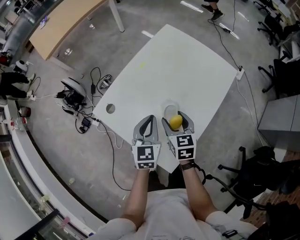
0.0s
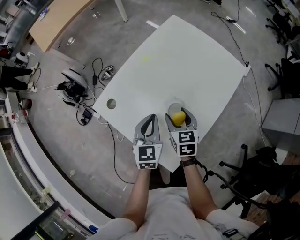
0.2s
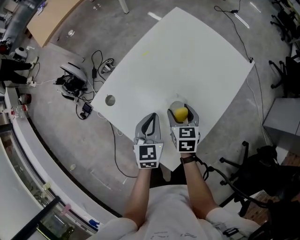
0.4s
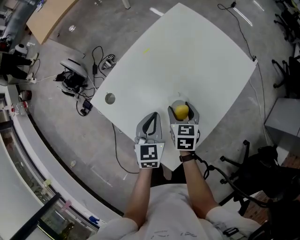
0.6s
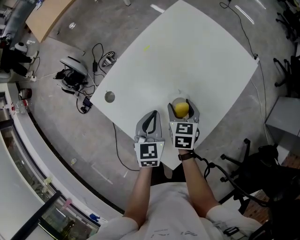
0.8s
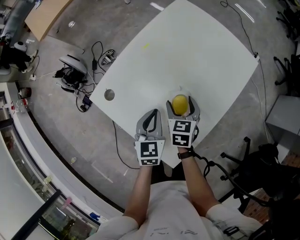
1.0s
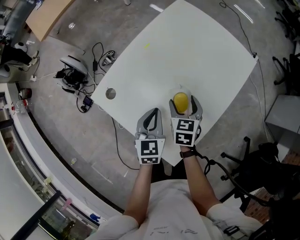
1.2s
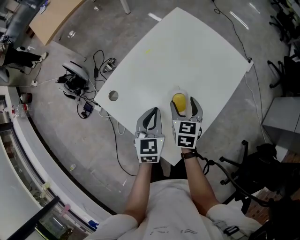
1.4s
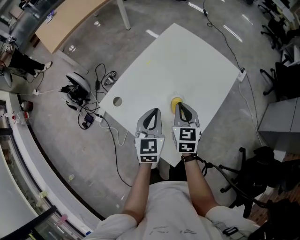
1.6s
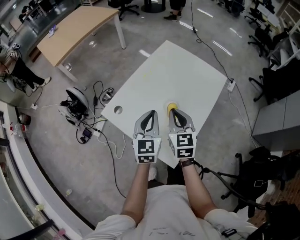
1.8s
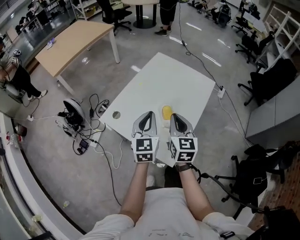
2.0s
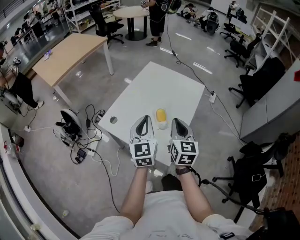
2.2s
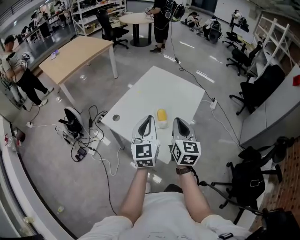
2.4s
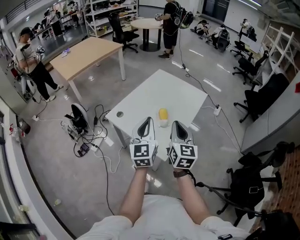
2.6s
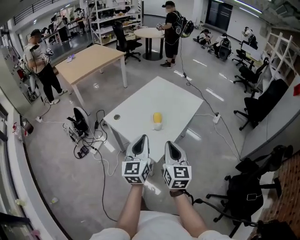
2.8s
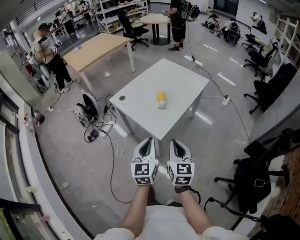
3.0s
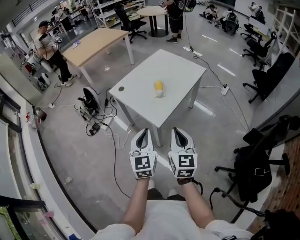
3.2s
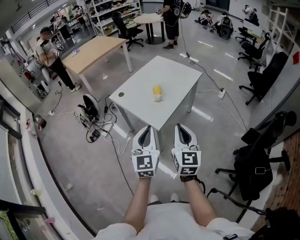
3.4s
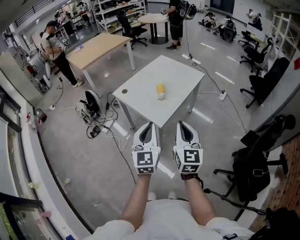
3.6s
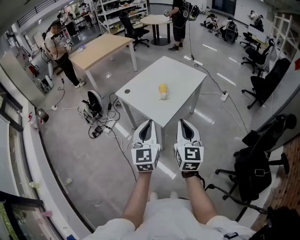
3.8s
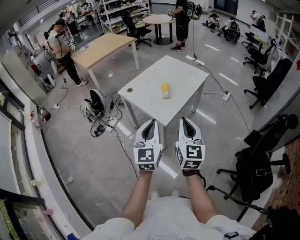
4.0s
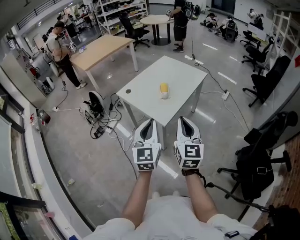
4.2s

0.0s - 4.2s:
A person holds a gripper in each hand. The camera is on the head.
0.0s - 1.4s: The right gripper travels downward and back again, approximately 10 cm each way.
1.4s - 2.8s: Both grippers move backward and upward, about 35 cm. The left gripper angles its fingers upward, by approximately 30 degrees. The right gripper points its fingers roughly 30 degrees further upward, and closes its fingers.
2.8s - 4.2s: The right gripper heads backward and upward, covering some 15 cm. The left gripper is displaced backward by approximately 15 cm.

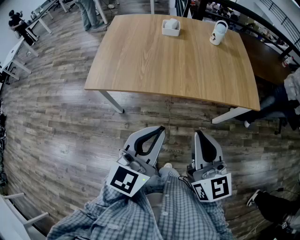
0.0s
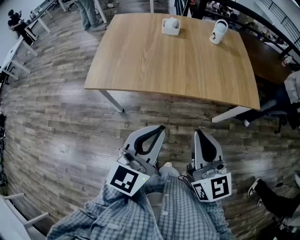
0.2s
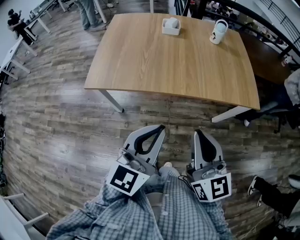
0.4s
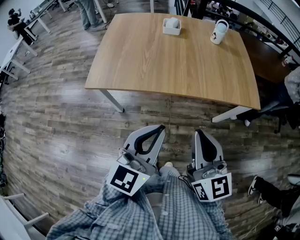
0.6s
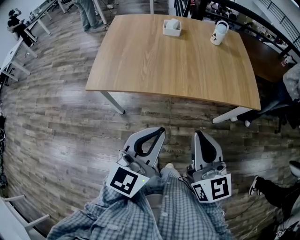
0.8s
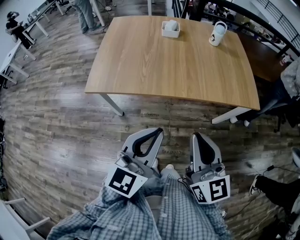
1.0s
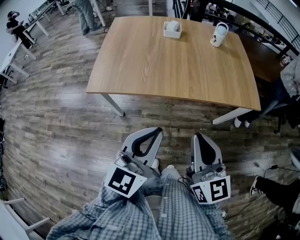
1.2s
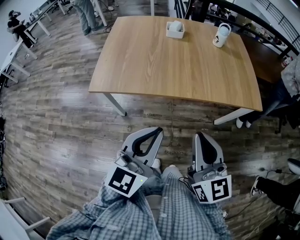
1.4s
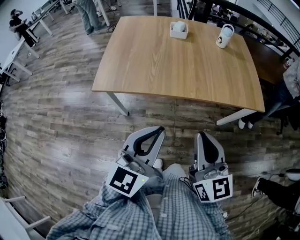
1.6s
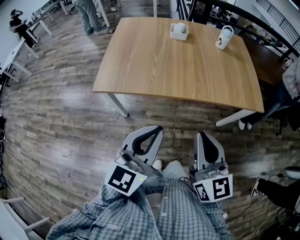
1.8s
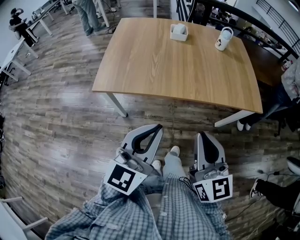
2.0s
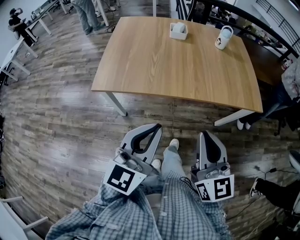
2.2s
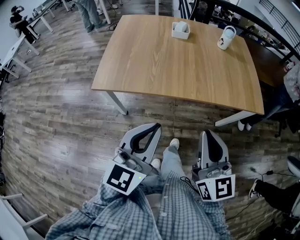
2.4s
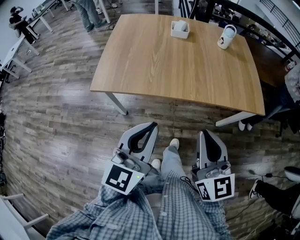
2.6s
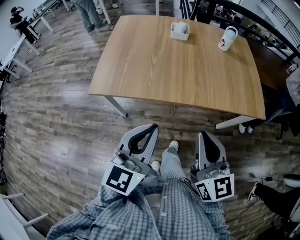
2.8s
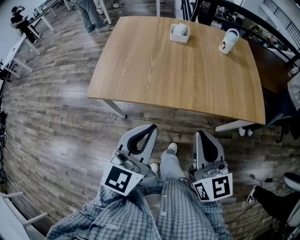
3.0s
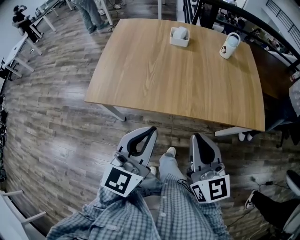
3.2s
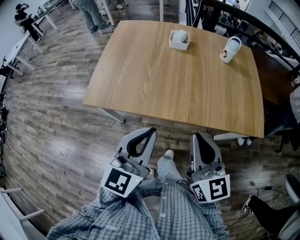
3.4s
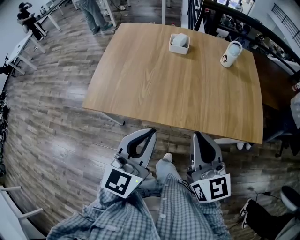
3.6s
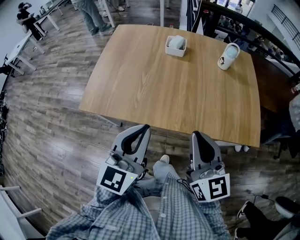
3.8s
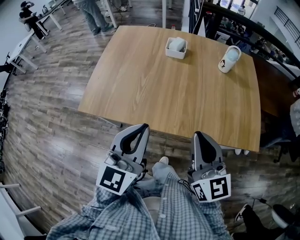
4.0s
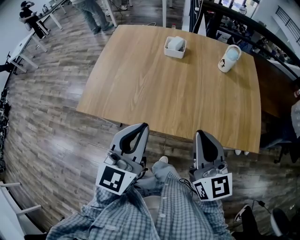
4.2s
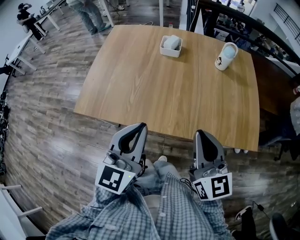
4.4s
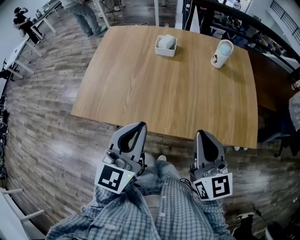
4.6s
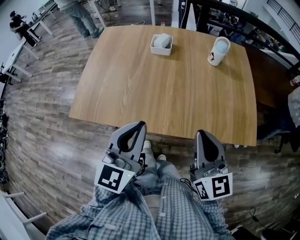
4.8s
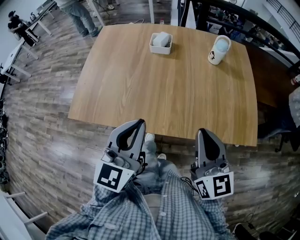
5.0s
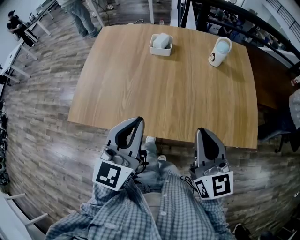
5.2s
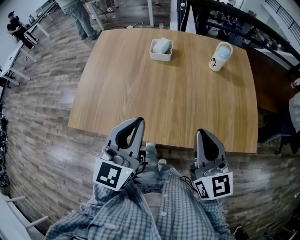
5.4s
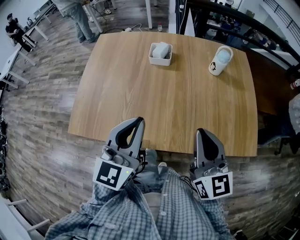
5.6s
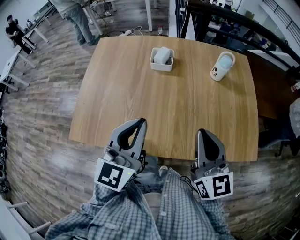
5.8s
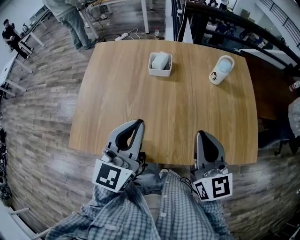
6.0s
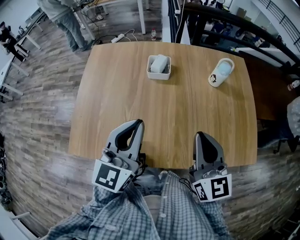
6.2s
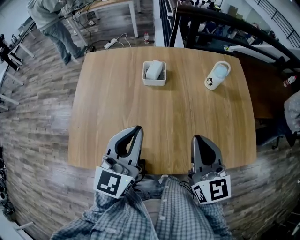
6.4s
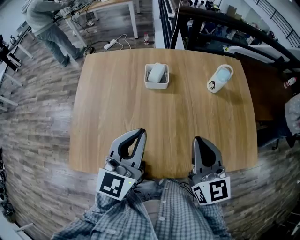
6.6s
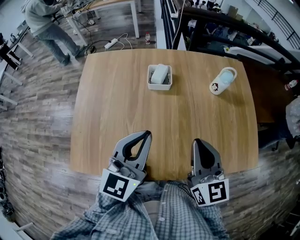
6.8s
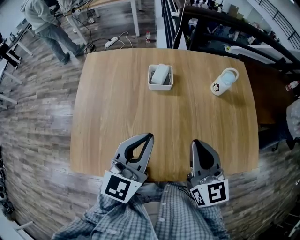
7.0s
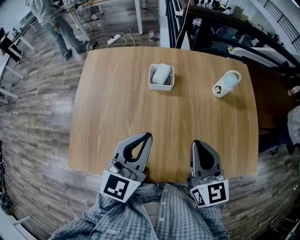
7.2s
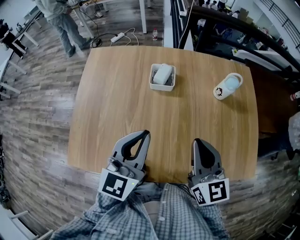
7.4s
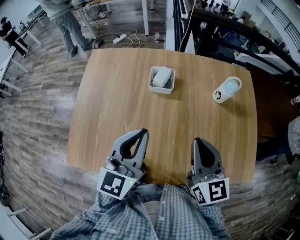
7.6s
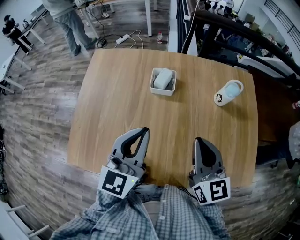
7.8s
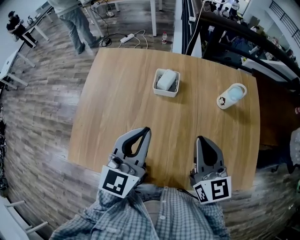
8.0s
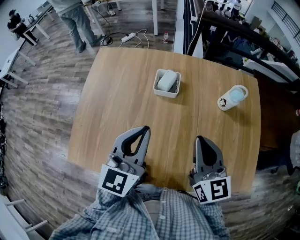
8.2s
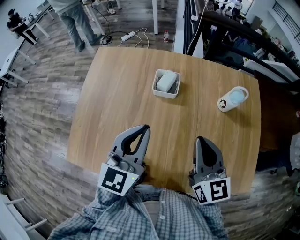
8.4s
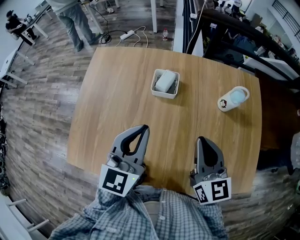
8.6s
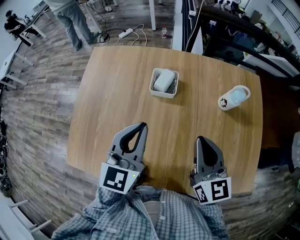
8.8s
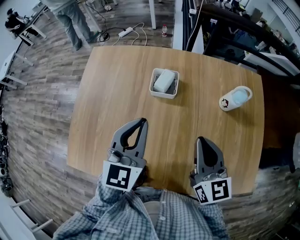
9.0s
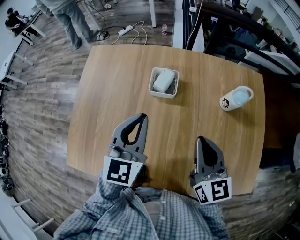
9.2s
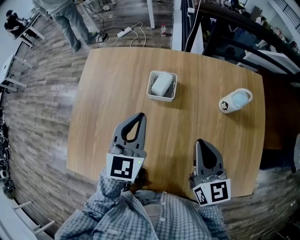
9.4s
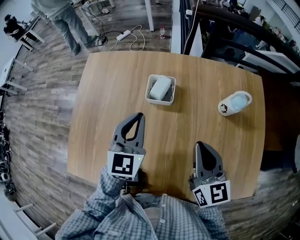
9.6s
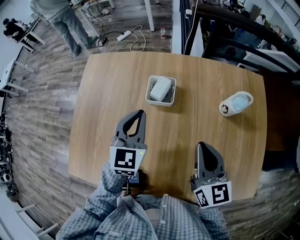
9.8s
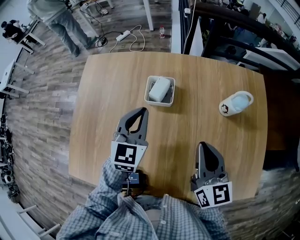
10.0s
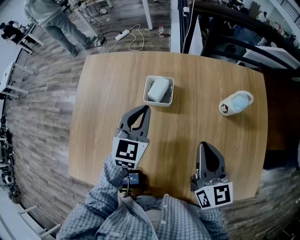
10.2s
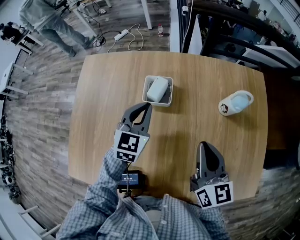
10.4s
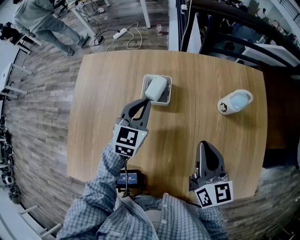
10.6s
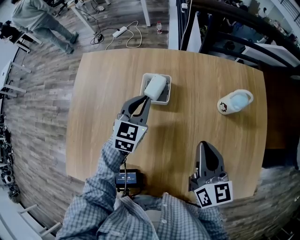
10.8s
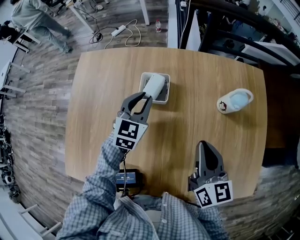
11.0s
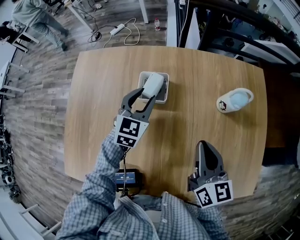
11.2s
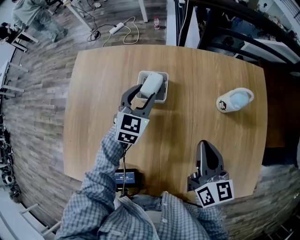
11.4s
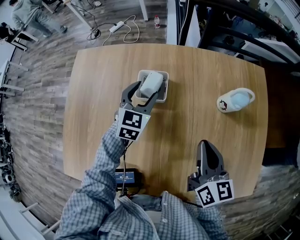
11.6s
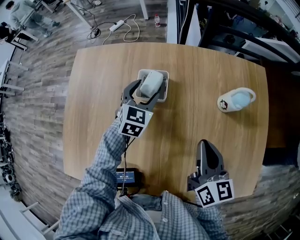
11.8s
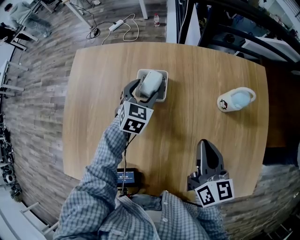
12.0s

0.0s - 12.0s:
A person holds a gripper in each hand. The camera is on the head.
0.0s - 1.6s: The grippers both shift to the left by approximately 5 cm.
1.6s - 3.0s: Both grippers move forward, some 5 cm.
3.0s - 4.4s: Both grippers move forward and to the right, approximately 15 cm.
4.4s - 6.0s: Both grippers travel together forward, about 15 cm.
6.0s - 7.6s: The grippers both shift forward by some 10 cm.
7.6s - 9.0s: Both grippers move forward, approximately 5 cm.
9.0s - 10.4s: The right gripper moves about 5 cm. Meanwhile the left gripper travels forward and downward by roughly 15 cm.
10.4s - 12.0s: The left gripper moves downward and forward, about 10 cm, and opens its fingers.

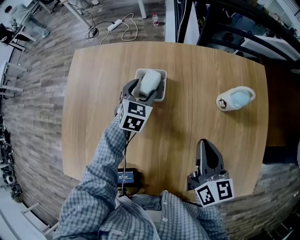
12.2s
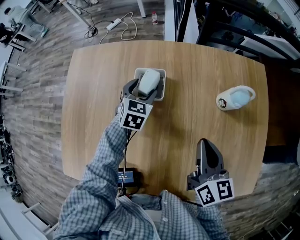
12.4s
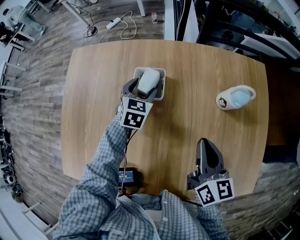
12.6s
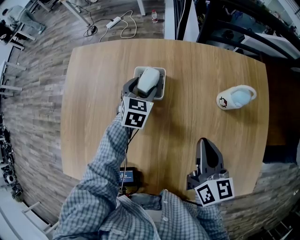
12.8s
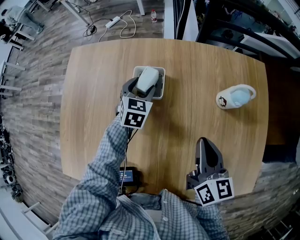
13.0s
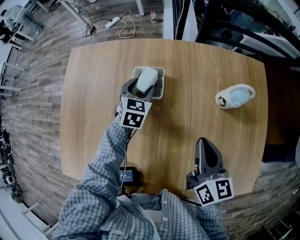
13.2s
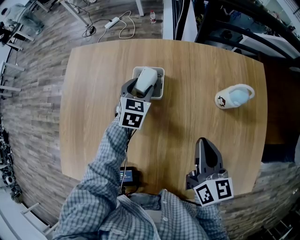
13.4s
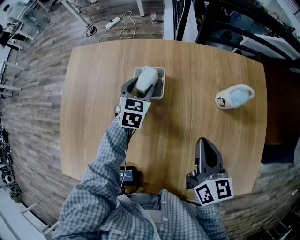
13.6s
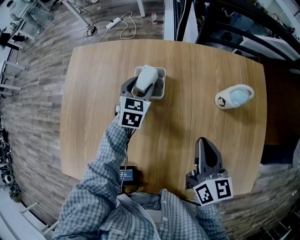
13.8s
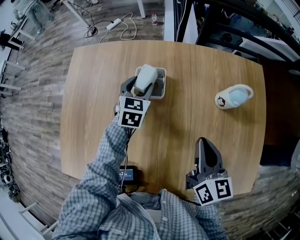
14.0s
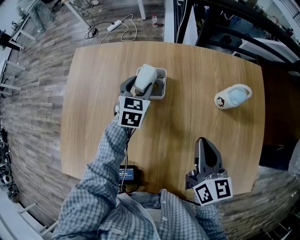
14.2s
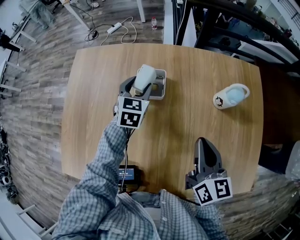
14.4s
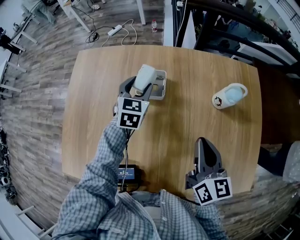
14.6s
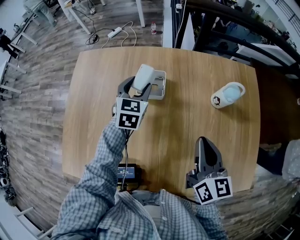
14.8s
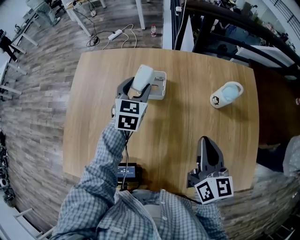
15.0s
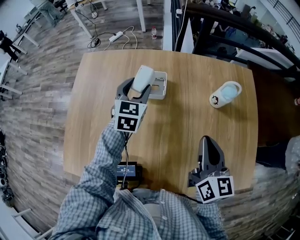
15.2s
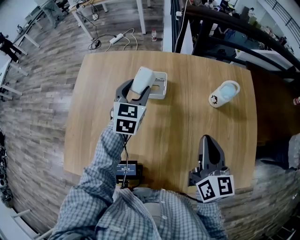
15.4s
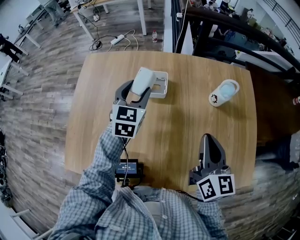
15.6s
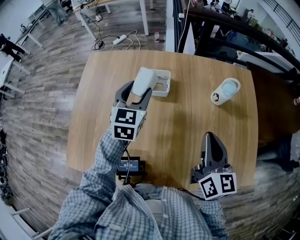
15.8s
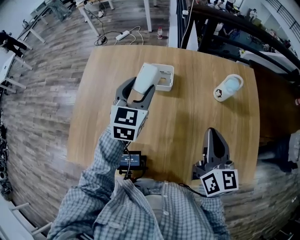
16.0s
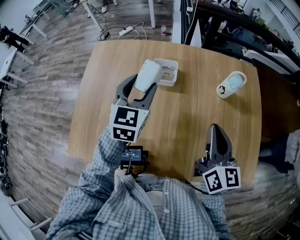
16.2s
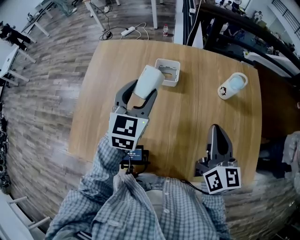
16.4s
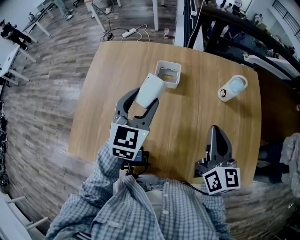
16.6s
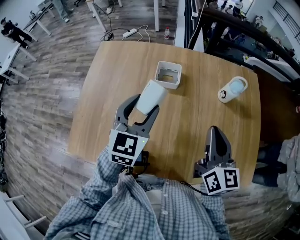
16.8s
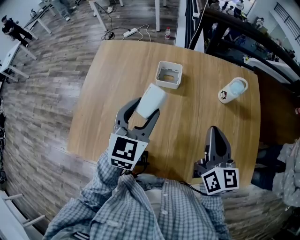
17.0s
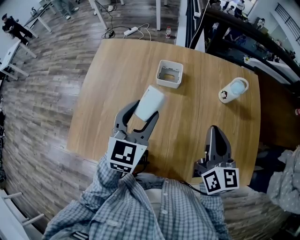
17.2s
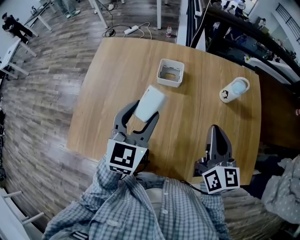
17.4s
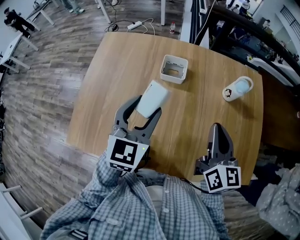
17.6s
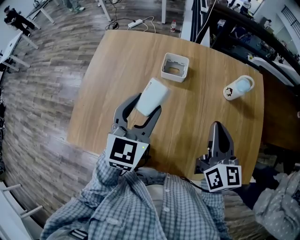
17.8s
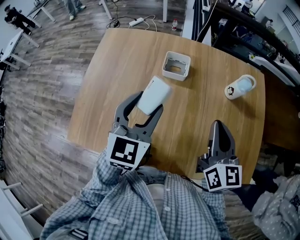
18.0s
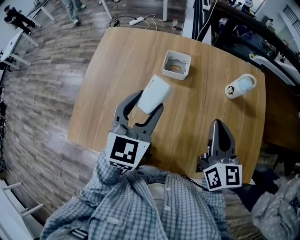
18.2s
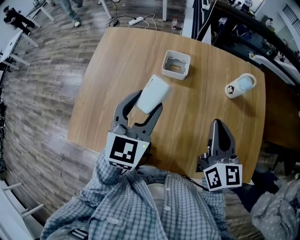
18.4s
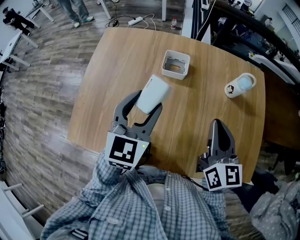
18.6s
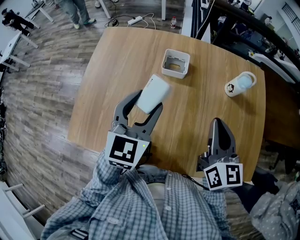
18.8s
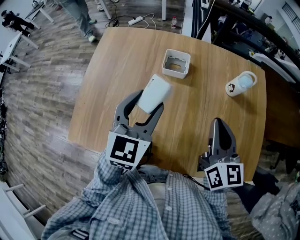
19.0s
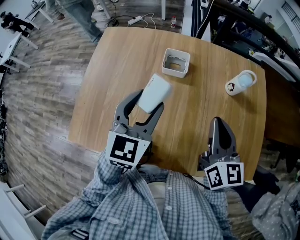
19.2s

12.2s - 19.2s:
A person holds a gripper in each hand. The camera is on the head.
12.2s - 13.6s: The grippers move only a little.
13.6s - 15.0s: The right gripper changes place by some 5 cm. The left gripper goes approximately 10 cm upward.
15.0s - 16.4s: The right gripper moves some 5 cm; the left gripper goes roughly 15 cm backward and upward.
16.4s - 17.8s: The left gripper shifts roughly 5 cm backward.
17.8s - 19.2s: Neither gripper changes place.
